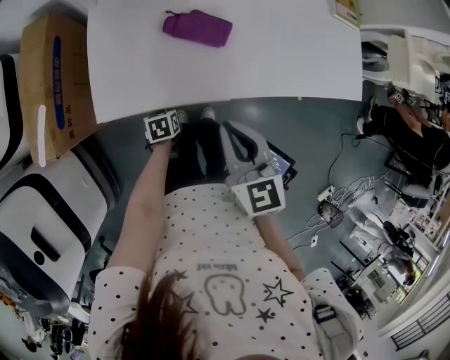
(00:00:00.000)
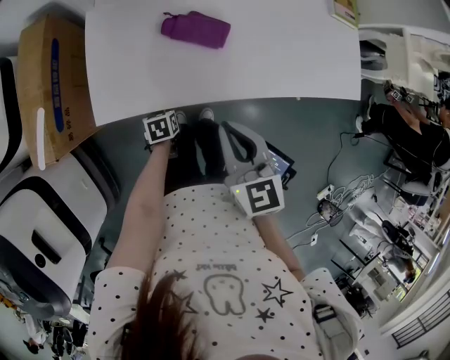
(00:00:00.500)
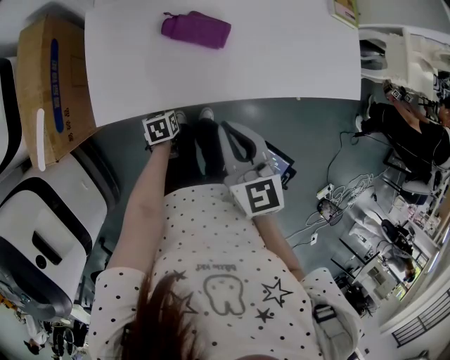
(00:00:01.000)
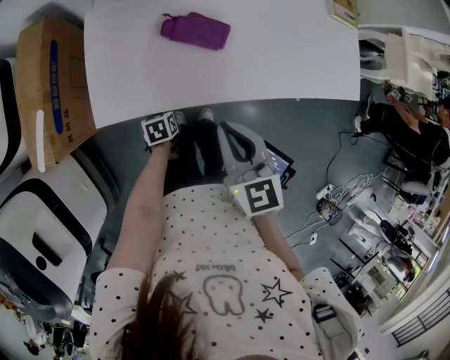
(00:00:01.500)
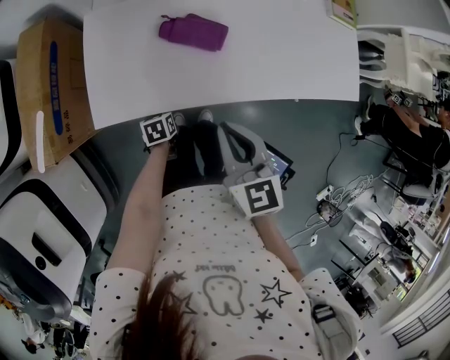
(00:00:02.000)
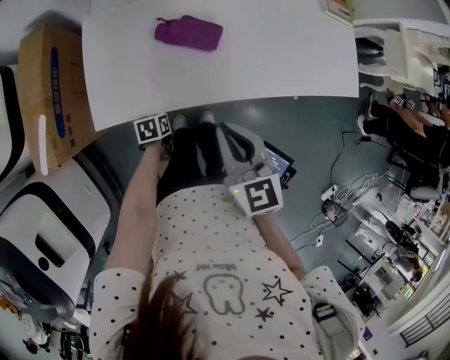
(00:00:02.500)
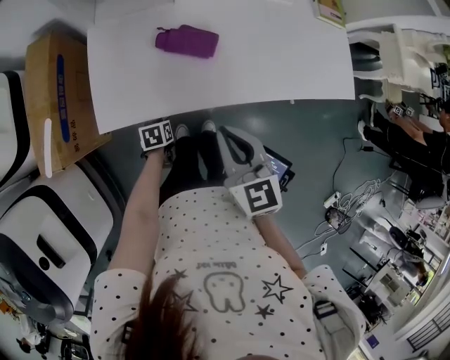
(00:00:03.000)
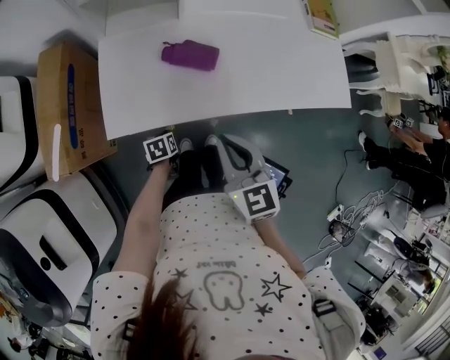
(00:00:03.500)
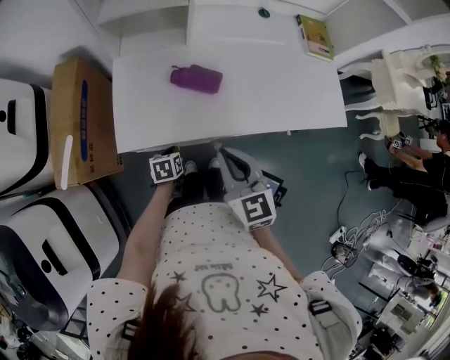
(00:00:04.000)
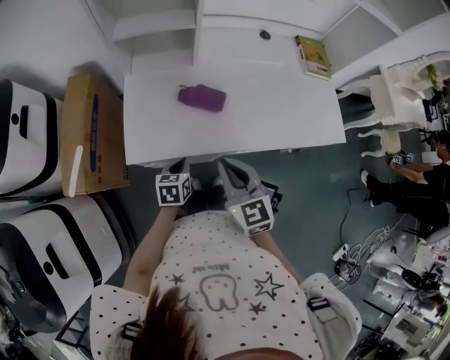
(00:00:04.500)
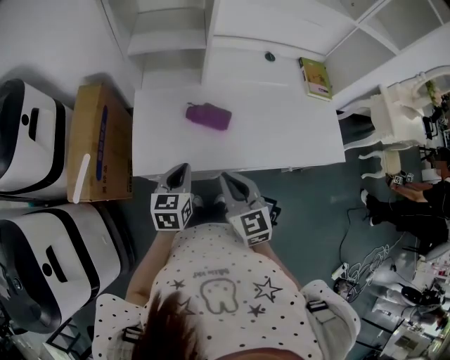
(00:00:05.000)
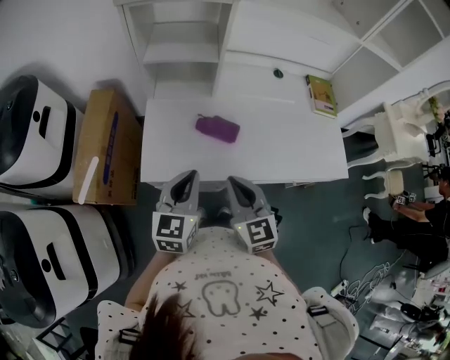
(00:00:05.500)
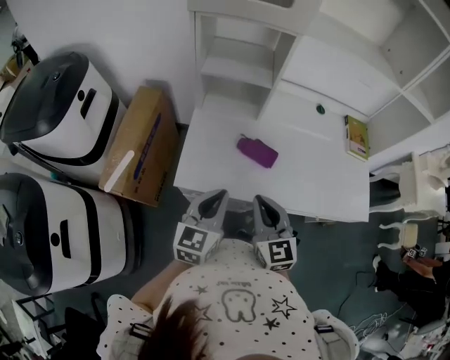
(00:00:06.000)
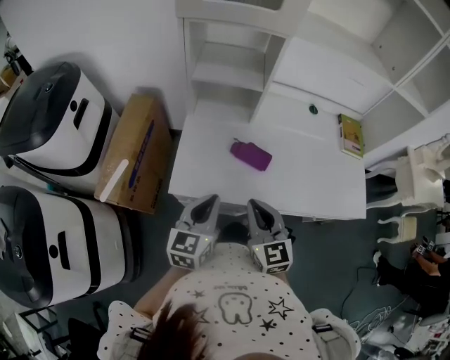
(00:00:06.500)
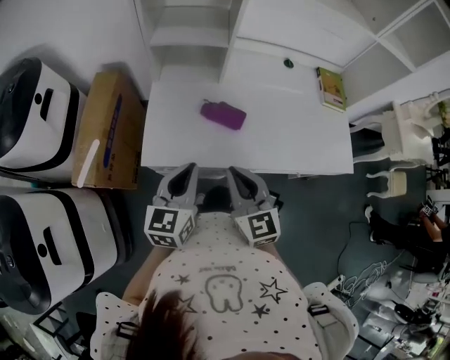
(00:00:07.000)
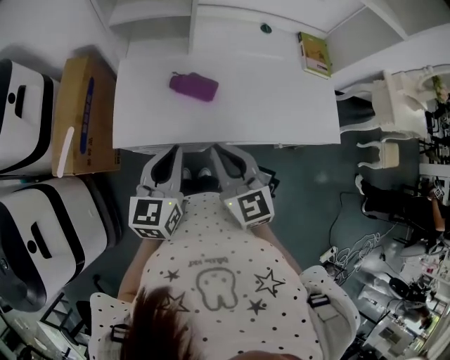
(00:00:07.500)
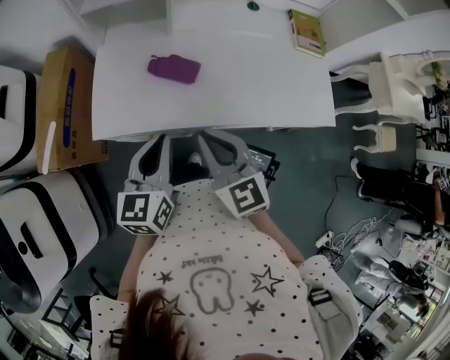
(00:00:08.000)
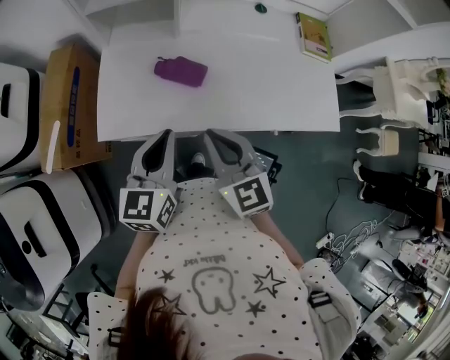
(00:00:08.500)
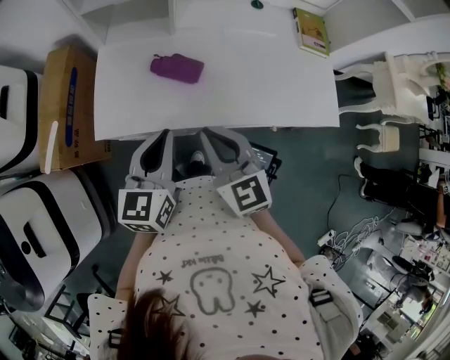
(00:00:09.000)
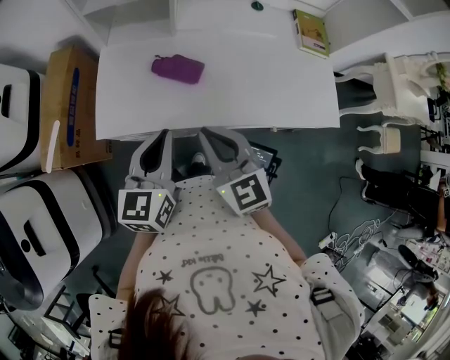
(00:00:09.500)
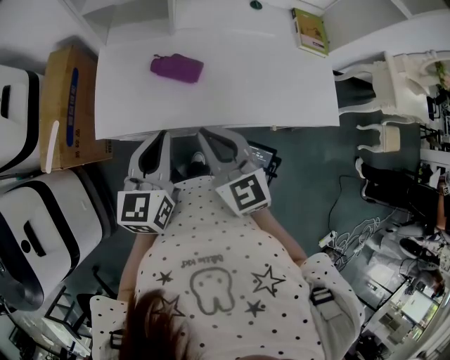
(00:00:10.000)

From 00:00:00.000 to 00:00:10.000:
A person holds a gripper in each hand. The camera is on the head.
From 00:00:00.000 to 00:00:02.000: Both grippers stay about where they are.
From 00:00:02.000 to 00:00:04.000: The left gripper moves upward, roughly 10 cm.
From 00:00:04.000 to 00:00:06.000: The left gripper moves upward, about 30 cm, and points its fingers roughly 40 degrees further upward. Meanwhile the right gripper shifts about 5 cm upward.
From 00:00:06.000 to 00:00:08.000: Both grippers travel together to the right, approximately 10 cm.
From 00:00:08.000 to 00:00:10.000: The grippers make only small movements.

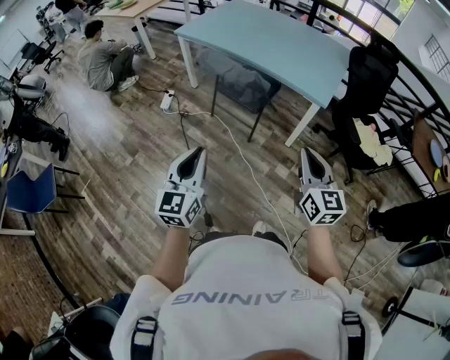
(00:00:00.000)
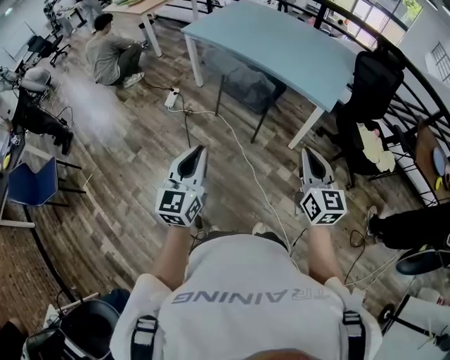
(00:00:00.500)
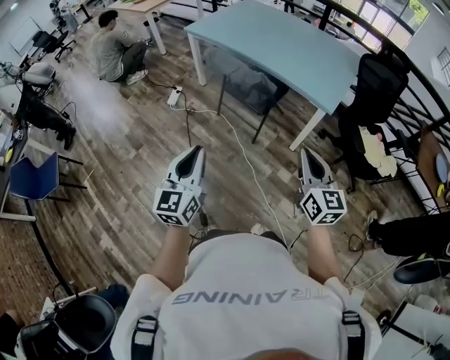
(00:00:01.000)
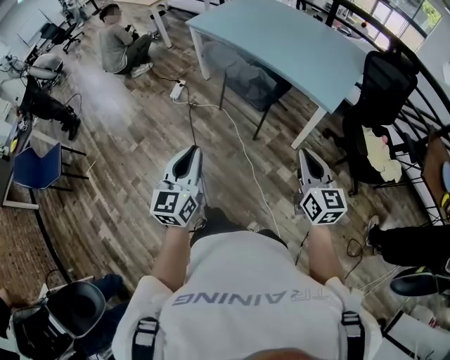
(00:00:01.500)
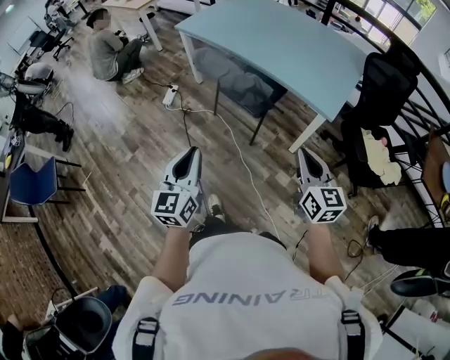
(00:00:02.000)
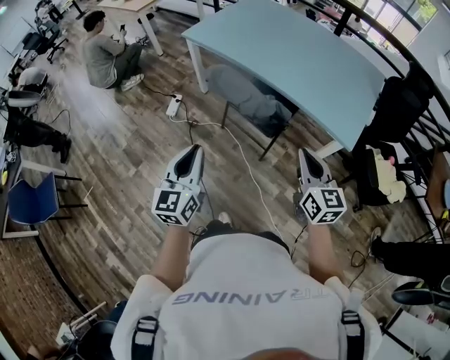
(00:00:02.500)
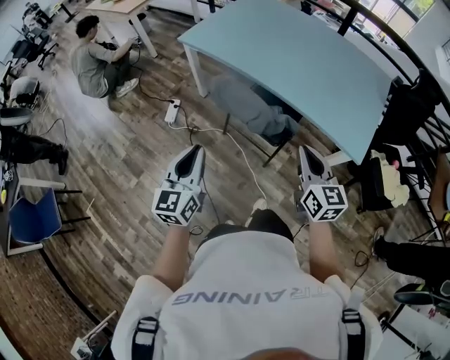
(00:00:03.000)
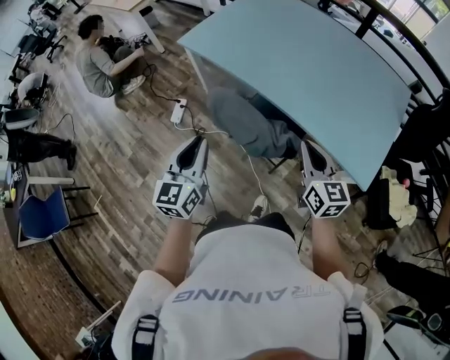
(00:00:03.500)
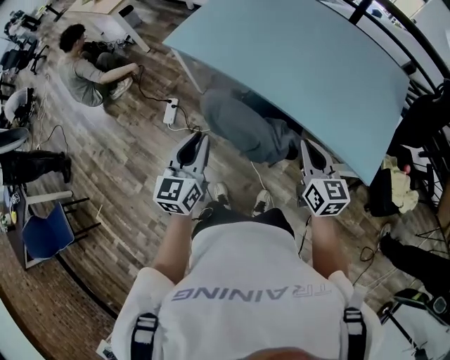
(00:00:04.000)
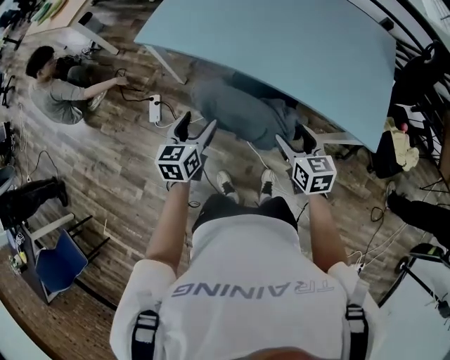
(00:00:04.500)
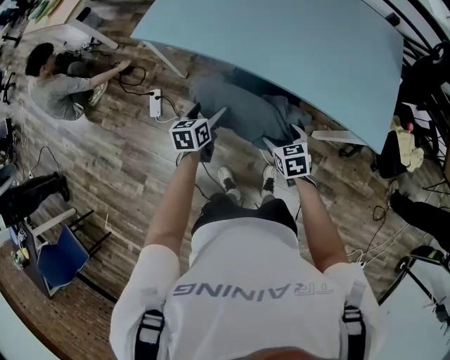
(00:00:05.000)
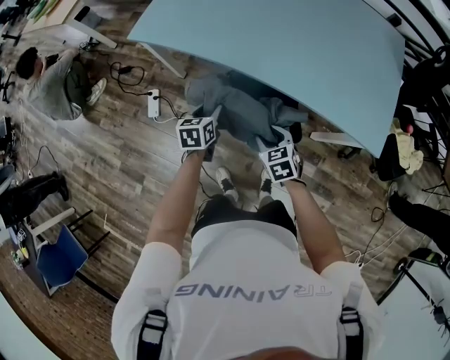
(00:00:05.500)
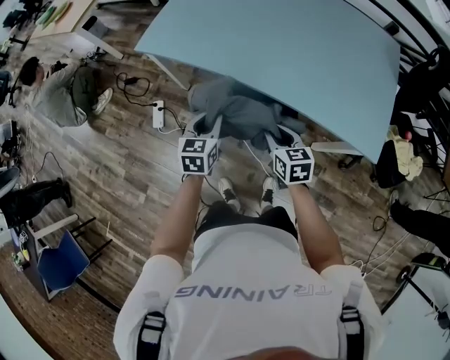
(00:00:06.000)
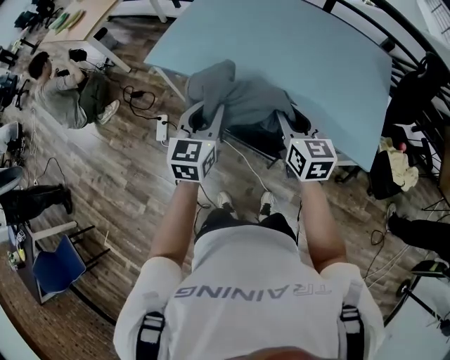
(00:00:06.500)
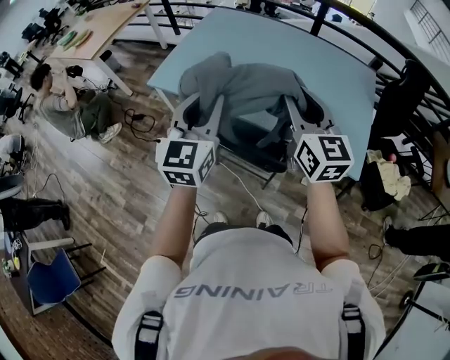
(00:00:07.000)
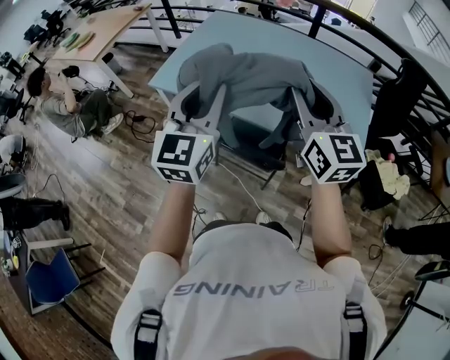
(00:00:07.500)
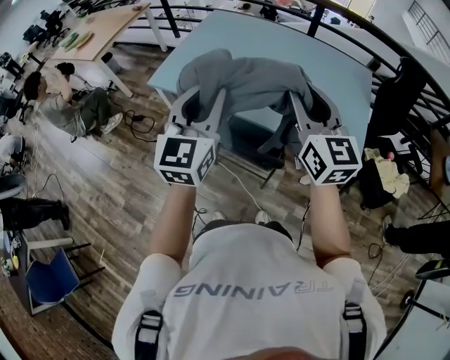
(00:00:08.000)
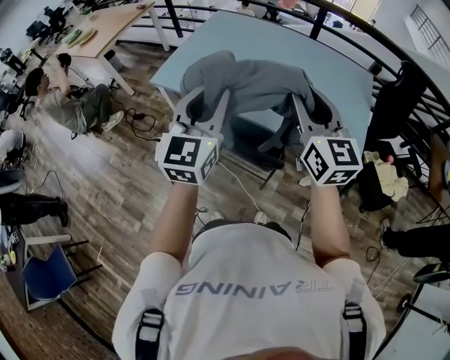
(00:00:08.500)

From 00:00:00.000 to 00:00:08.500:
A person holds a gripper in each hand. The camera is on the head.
From 00:00:00.000 to 00:00:02.000: The left gripper is displaced forward by approximately 10 cm. Meanwhile the right gripper moves forward, to the right and downward, some 15 cm.
From 00:00:02.000 to 00:00:04.000: The two grippers travel together, forward, about 50 cm.
From 00:00:04.000 to 00:00:06.500: The two grippers go approximately 10 cm forward. The right gripper travels downward and back again, about 20 cm each way, and opens, then closes again, while the left gripper goes downward and returns, some 25 cm each way, and opens, then closes again.
From 00:00:06.500 to 00:00:08.500: Both grippers travel together upward, roughly 20 cm. The right gripper rotates approximately 20 degrees.

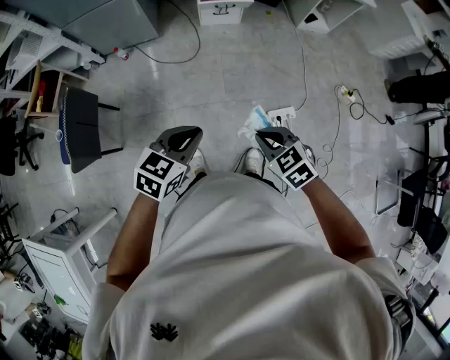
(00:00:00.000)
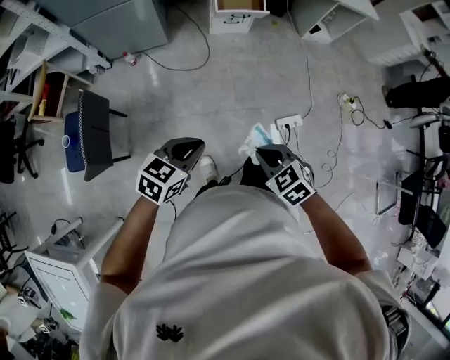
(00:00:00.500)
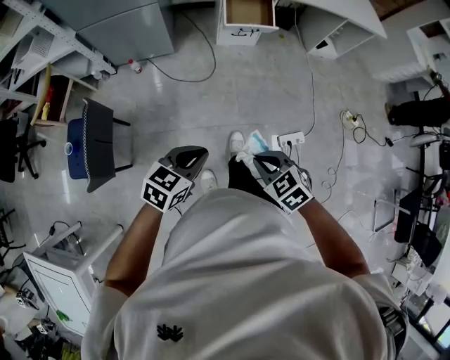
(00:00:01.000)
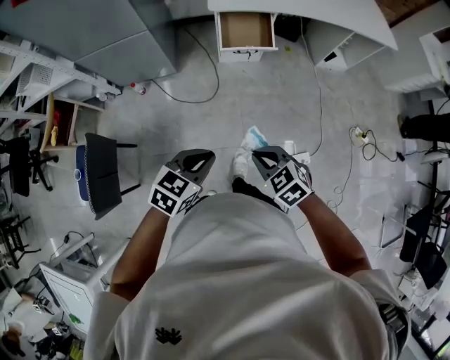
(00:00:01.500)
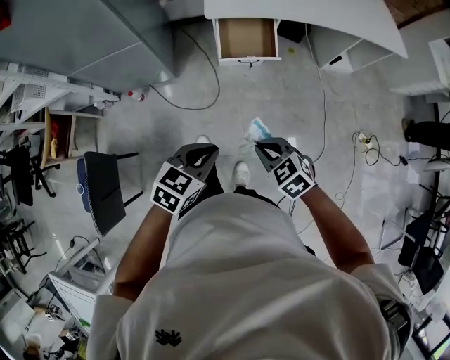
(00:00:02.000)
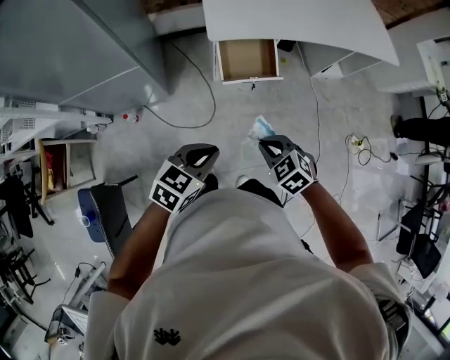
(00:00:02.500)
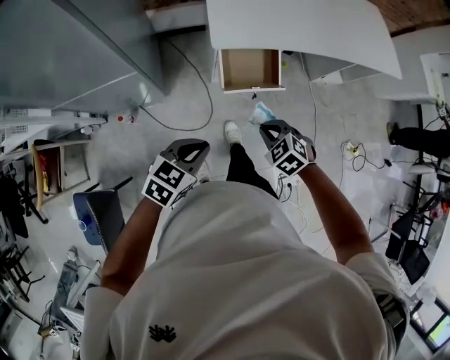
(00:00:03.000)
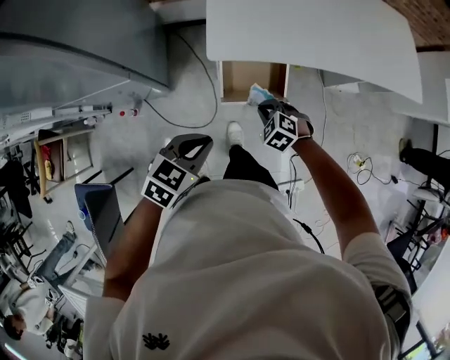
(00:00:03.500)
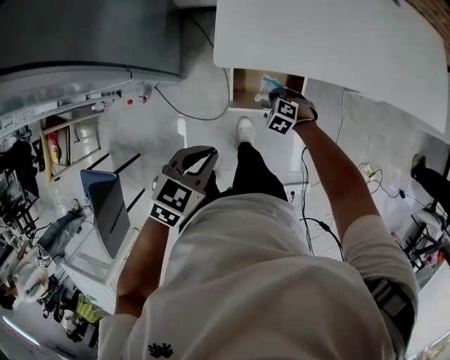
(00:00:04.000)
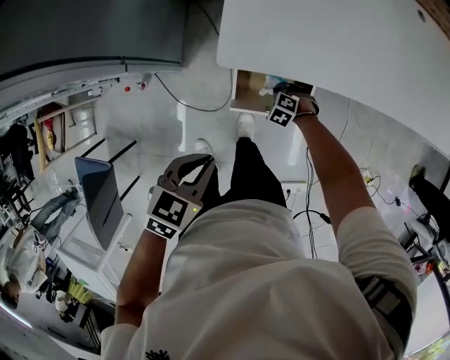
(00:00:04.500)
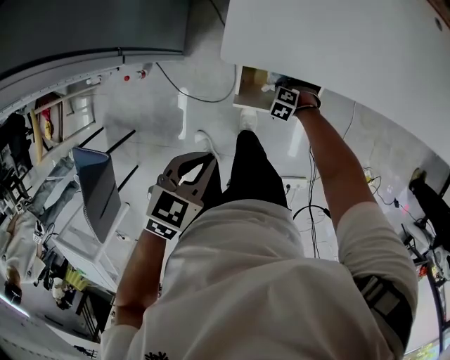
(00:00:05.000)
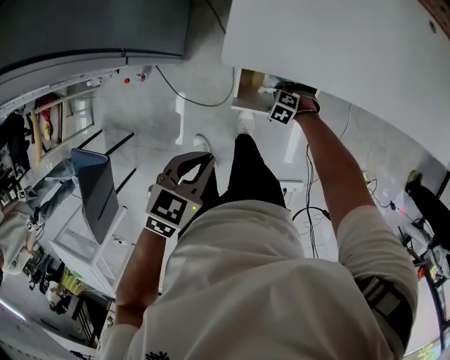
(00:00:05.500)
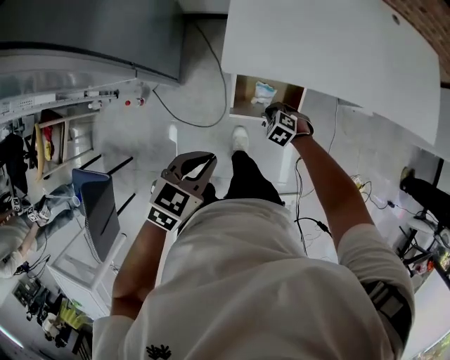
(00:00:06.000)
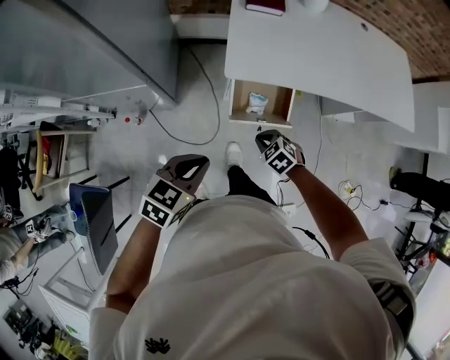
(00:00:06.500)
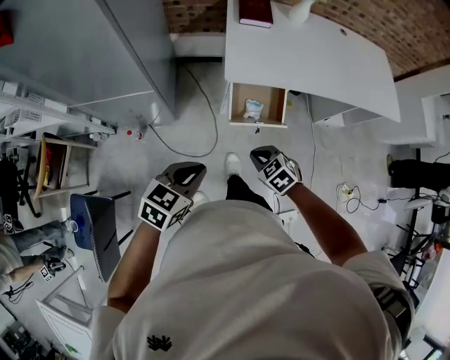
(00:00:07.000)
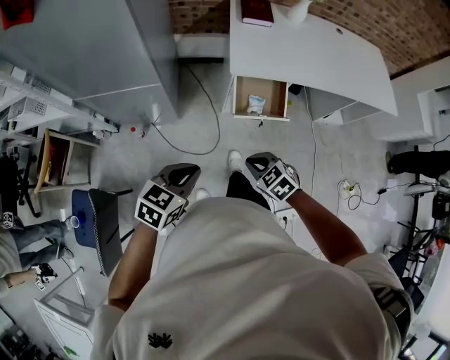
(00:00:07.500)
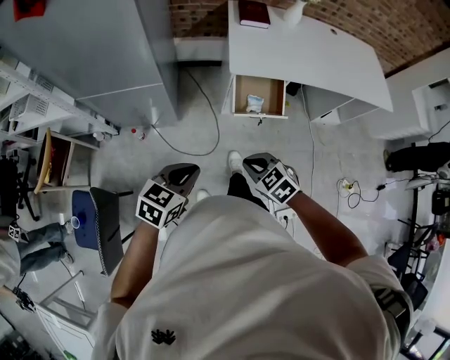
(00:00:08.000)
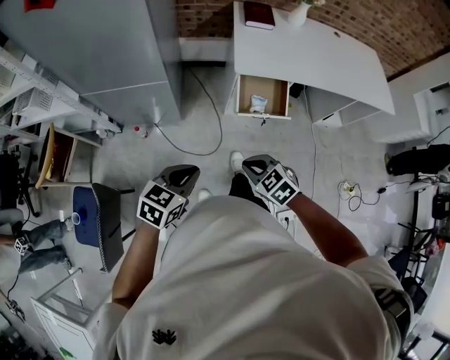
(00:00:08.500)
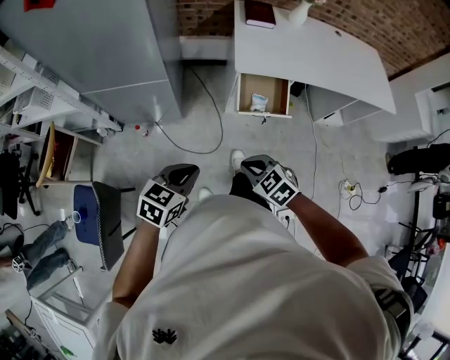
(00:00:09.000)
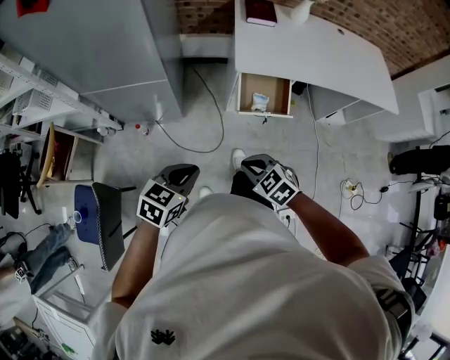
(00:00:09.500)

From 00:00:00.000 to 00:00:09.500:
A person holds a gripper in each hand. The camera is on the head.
From 00:00:00.000 to 00:00:02.000: The pair of grippers is taken forward, about 40 cm.
From 00:00:02.000 to 00:00:04.000: The pair of grippers is taken forward, about 50 cm. The right gripper goes about 30 cm downward, and rotates some 40 degrees.
From 00:00:04.000 to 00:00:05.500: The right gripper shifts approximately 10 cm downward.
From 00:00:05.500 to 00:00:07.500: The right gripper ends up approximately 60 cm from where it was, and rotates some 40 degrees; the left gripper changes place by some 40 cm, and rotates about 20 degrees.
From 00:00:07.500 to 00:00:09.500: The right gripper changes place by some 5 cm. Meanwhile the left gripper moves about 5 cm.
